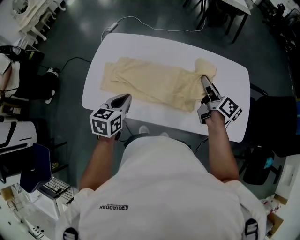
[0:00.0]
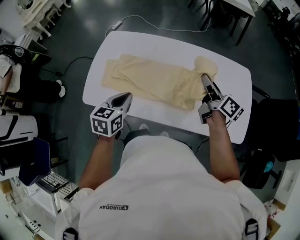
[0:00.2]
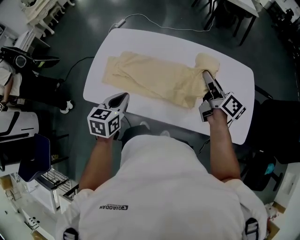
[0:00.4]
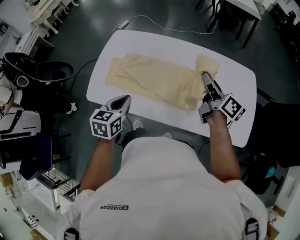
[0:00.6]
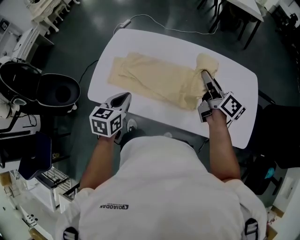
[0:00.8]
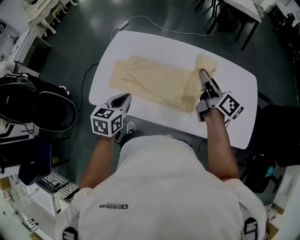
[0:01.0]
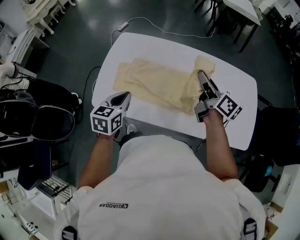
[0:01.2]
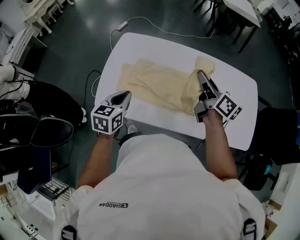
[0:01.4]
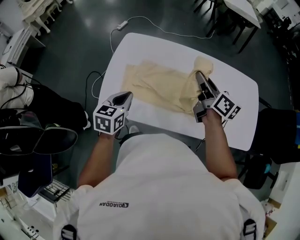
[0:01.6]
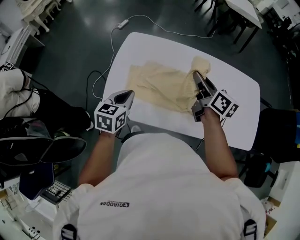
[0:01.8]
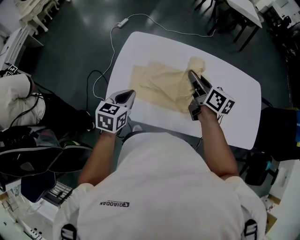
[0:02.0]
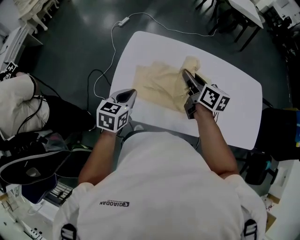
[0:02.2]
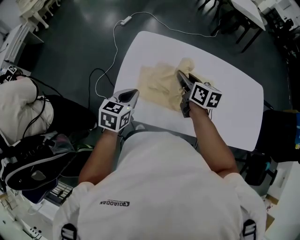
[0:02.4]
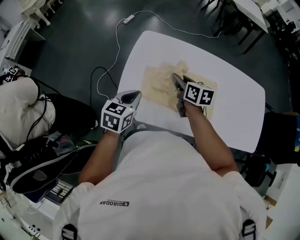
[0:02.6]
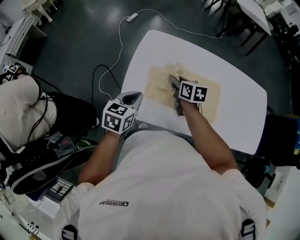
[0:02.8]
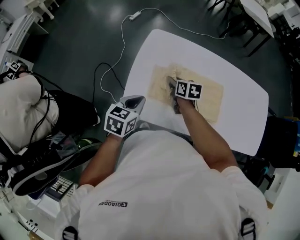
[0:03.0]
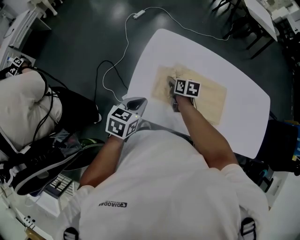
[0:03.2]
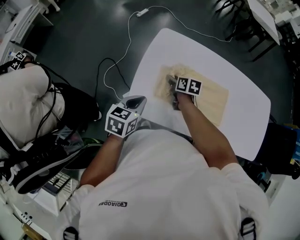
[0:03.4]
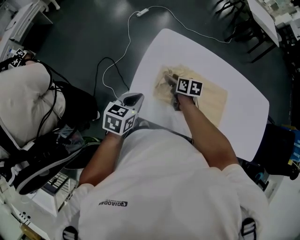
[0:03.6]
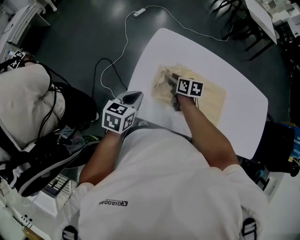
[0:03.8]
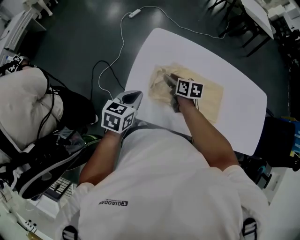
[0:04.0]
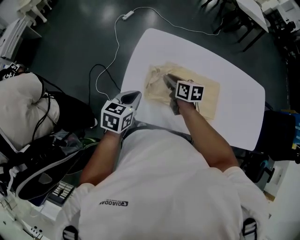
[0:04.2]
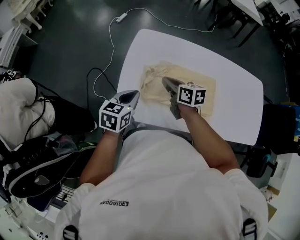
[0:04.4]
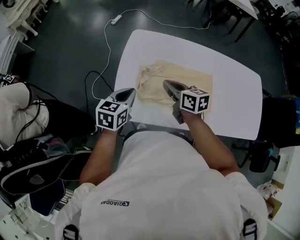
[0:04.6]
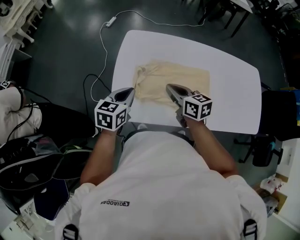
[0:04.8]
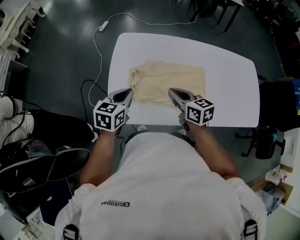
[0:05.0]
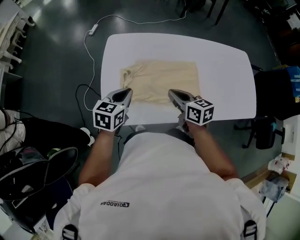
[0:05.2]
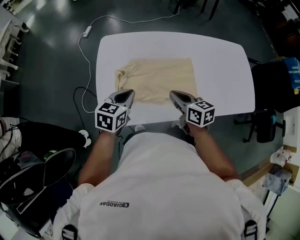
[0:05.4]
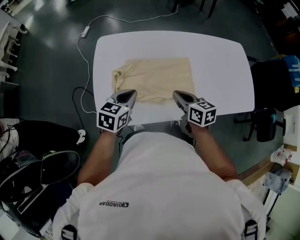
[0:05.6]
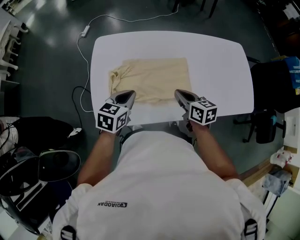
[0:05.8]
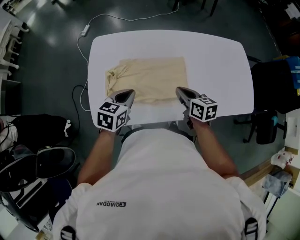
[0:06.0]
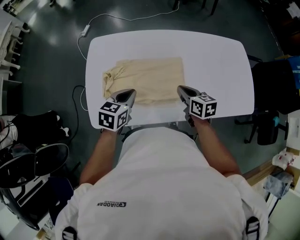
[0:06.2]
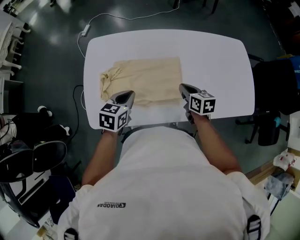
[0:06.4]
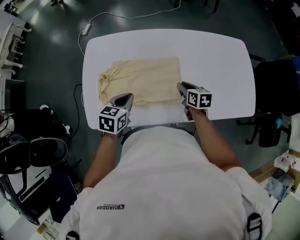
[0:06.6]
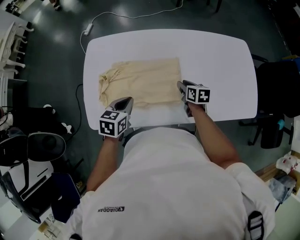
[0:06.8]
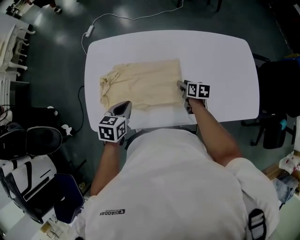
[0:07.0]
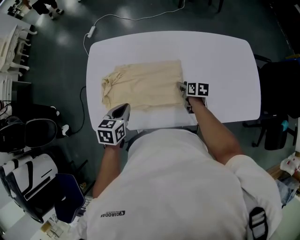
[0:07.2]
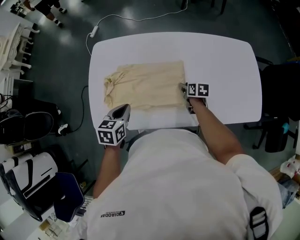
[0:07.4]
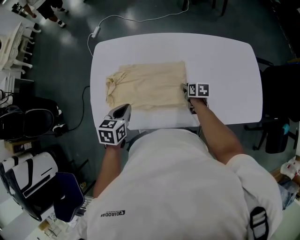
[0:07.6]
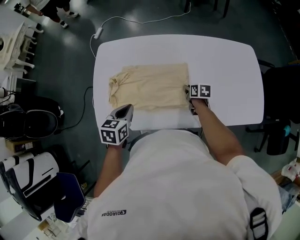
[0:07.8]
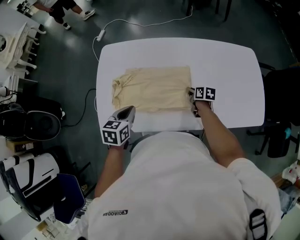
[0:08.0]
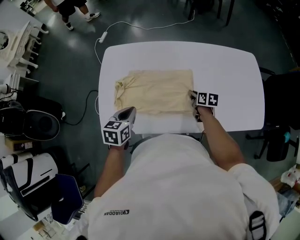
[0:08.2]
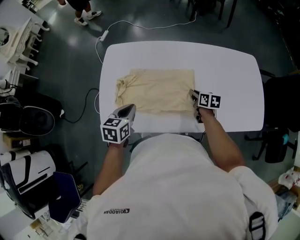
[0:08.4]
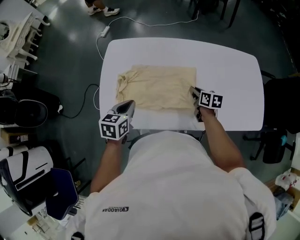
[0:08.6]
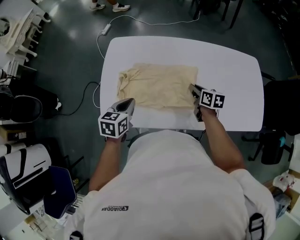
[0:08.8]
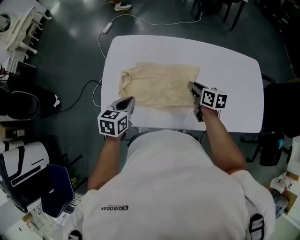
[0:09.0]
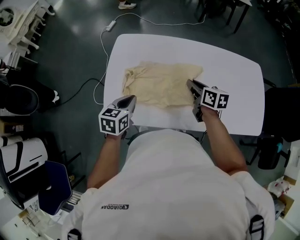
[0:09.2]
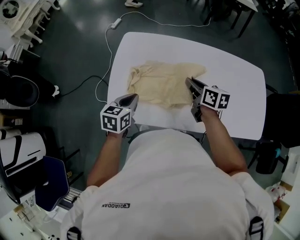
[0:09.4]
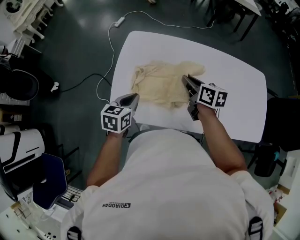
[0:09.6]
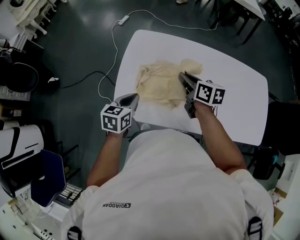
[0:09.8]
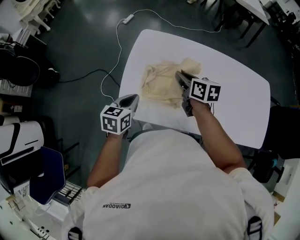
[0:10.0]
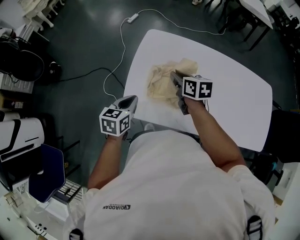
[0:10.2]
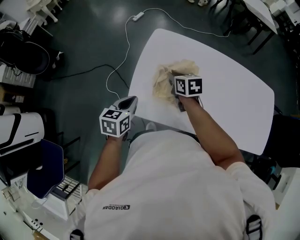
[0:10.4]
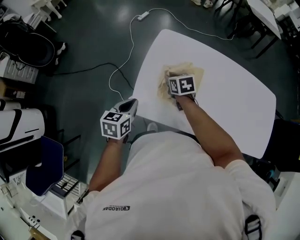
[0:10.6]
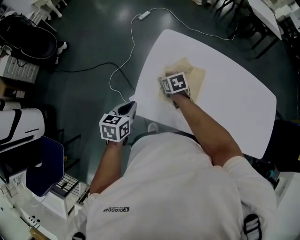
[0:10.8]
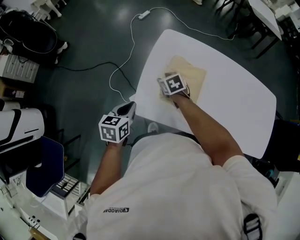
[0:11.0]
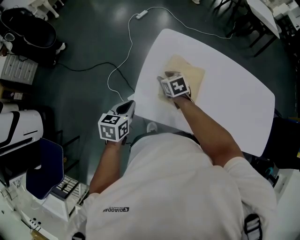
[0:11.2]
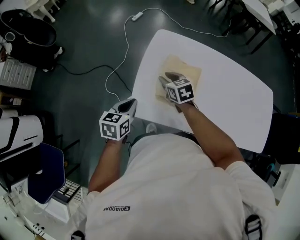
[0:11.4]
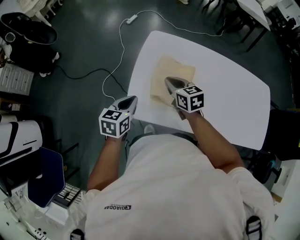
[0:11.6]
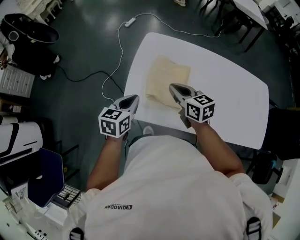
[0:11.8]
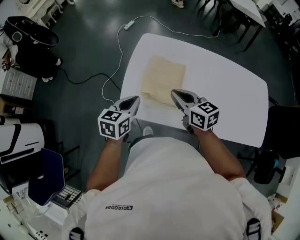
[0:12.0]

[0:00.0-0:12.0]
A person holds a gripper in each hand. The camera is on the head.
0:00.0 to 0:01.6: The grippers both shift to the left by some 20 cm.
0:01.6 to 0:03.0: The left gripper travels to the left and downward by about 10 cm. Meanwhile the right gripper travels to the left and downward by roughly 35 cm, and angles its fingers downward, by about 30 degrees.
0:03.0 to 0:04.4: The right gripper heads upward and backward, covering about 10 cm, and opens, then closes once more.
0:04.4 to 0:06.0: The right gripper is displaced to the right by roughly 25 cm. Meanwhile the left gripper moves to the right, roughly 15 cm.
0:06.0 to 0:07.6: The right gripper moves downward, to the right and forward, approximately 20 cm, turns by about 20 degrees, and opens its fingers.
0:07.6 to 0:09.0: The left gripper moves to the left, approximately 5 cm. Meanwhile the right gripper moves upward and to the left, roughly 15 cm, and closes.
0:09.0 to 0:10.4: The left gripper goes roughly 15 cm to the left; the right gripper is displaced to the left by approximately 30 cm, and turns by some 30 degrees.
0:10.4 to 0:12.0: The left gripper goes some 5 cm to the right. Meanwhile the right gripper shifts about 15 cm backward and upward, rotates some 20 degrees, and opens, then closes once more.

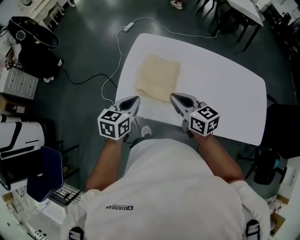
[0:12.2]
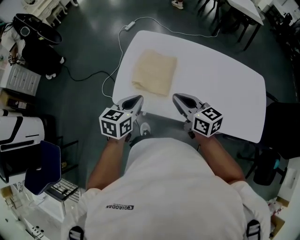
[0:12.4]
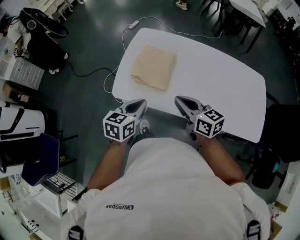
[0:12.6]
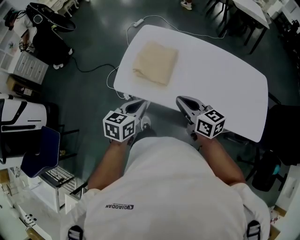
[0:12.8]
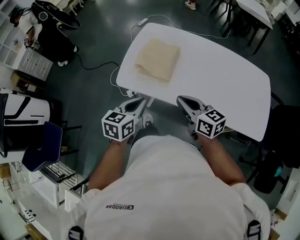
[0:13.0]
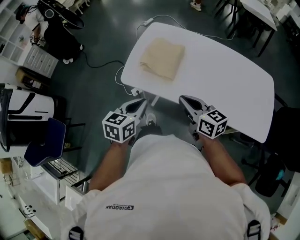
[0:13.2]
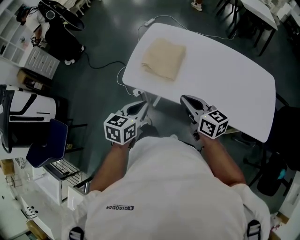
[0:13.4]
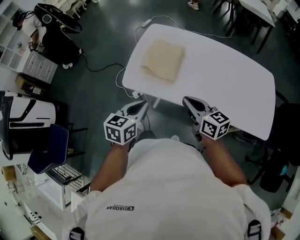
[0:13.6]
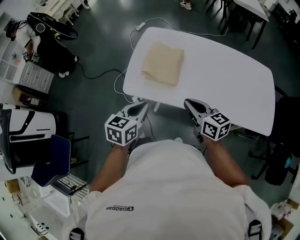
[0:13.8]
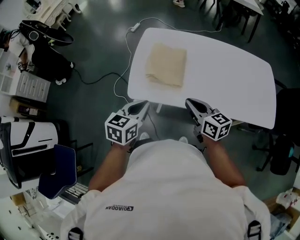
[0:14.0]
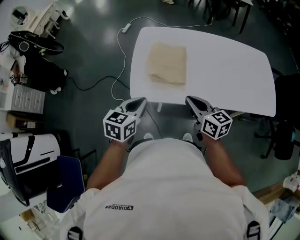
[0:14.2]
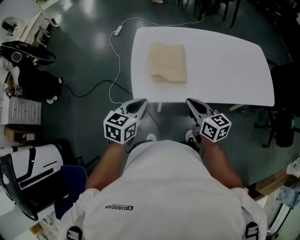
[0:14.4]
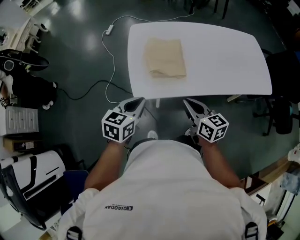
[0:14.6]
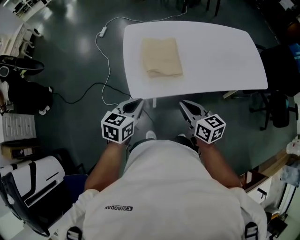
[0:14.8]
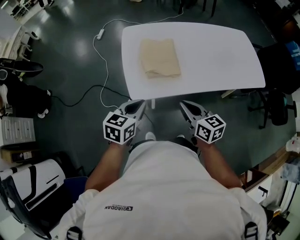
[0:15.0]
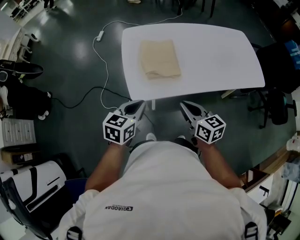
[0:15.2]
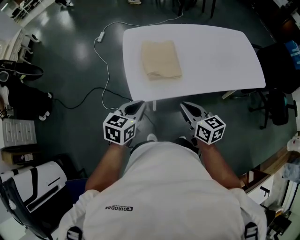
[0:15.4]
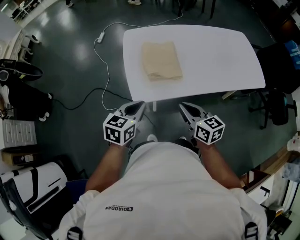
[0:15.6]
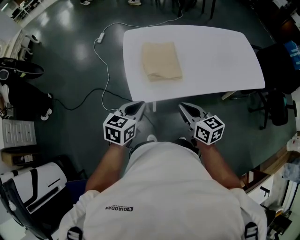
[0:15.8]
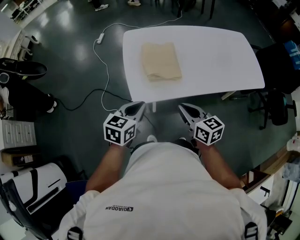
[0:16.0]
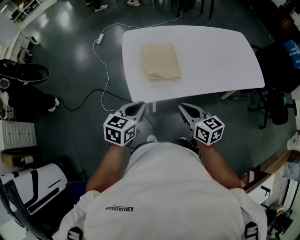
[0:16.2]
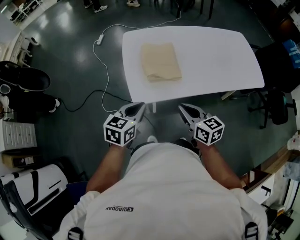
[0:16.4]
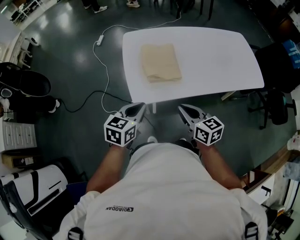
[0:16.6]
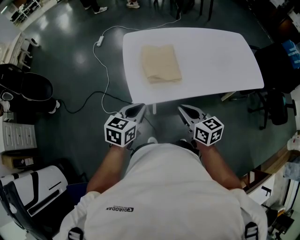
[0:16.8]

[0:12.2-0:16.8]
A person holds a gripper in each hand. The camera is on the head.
0:12.2 to 0:13.8: The two grippers go roughly 15 cm backward.
0:13.8 to 0:15.2: The left gripper shifts by about 15 cm, and swivels approximately 30 degrees. Meanwhile the right gripper ends up roughly 15 cm from where it was, and changes its angle by about 30 degrees.
0:15.2 to 0:16.8: The grippers move only a little.

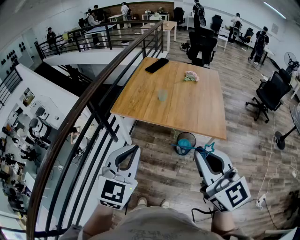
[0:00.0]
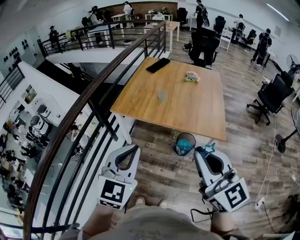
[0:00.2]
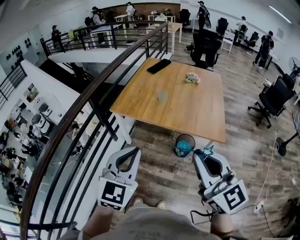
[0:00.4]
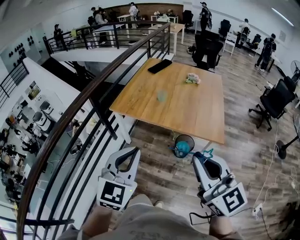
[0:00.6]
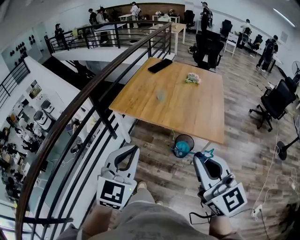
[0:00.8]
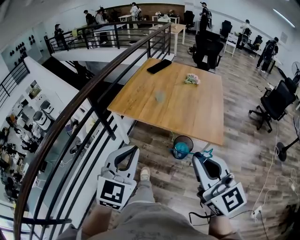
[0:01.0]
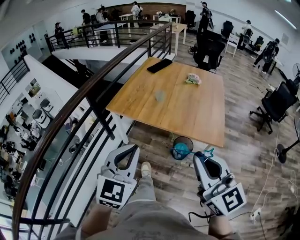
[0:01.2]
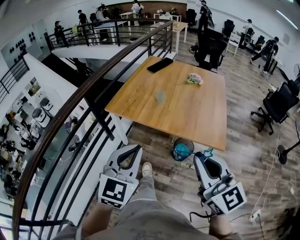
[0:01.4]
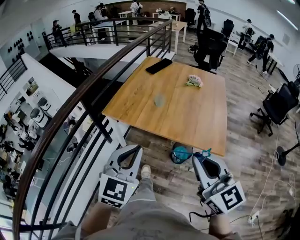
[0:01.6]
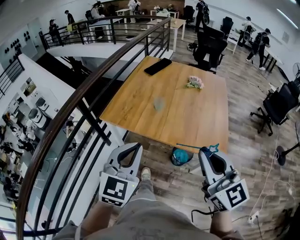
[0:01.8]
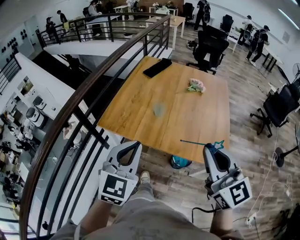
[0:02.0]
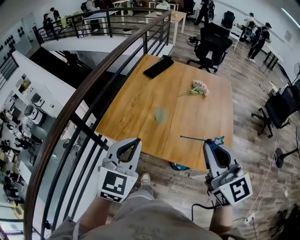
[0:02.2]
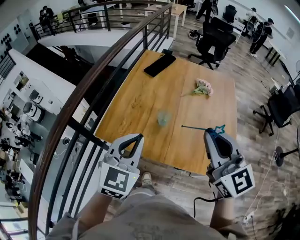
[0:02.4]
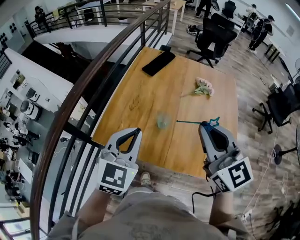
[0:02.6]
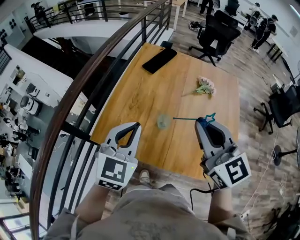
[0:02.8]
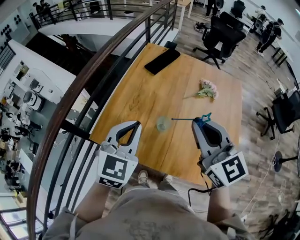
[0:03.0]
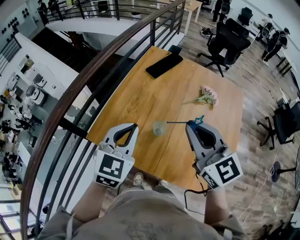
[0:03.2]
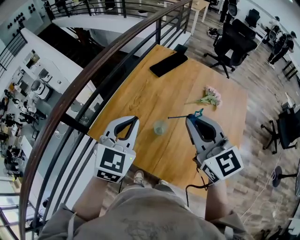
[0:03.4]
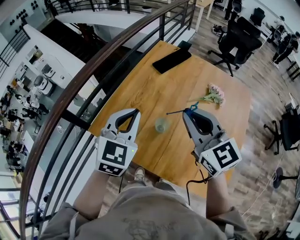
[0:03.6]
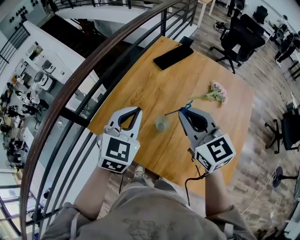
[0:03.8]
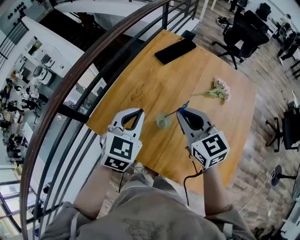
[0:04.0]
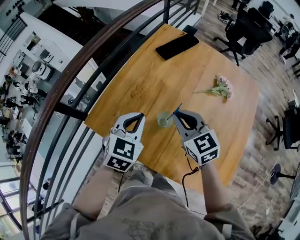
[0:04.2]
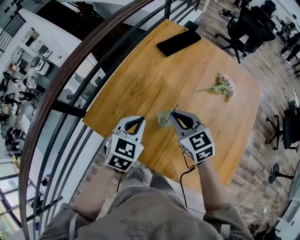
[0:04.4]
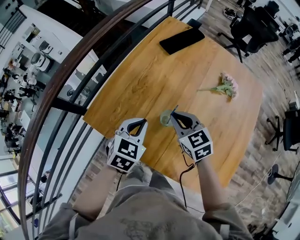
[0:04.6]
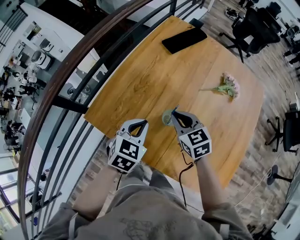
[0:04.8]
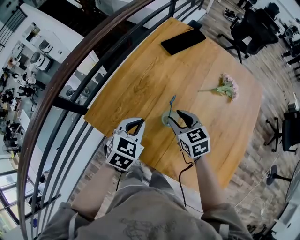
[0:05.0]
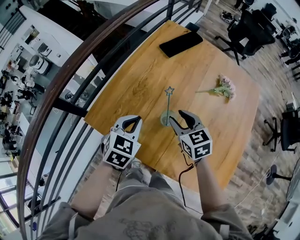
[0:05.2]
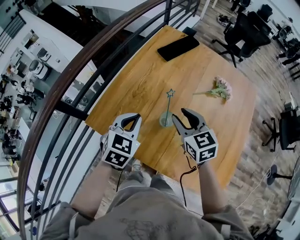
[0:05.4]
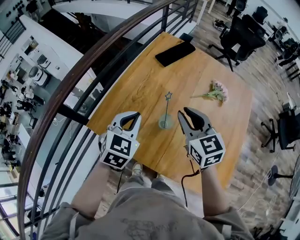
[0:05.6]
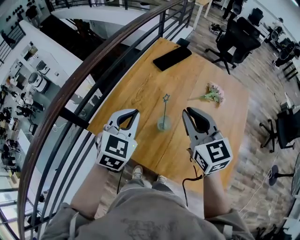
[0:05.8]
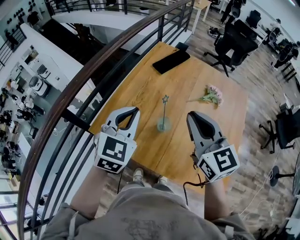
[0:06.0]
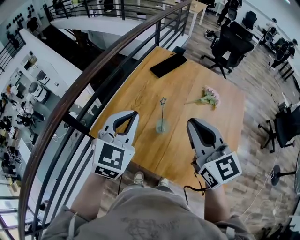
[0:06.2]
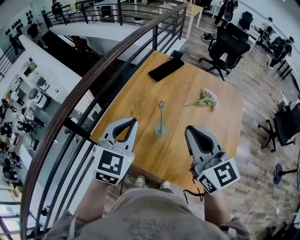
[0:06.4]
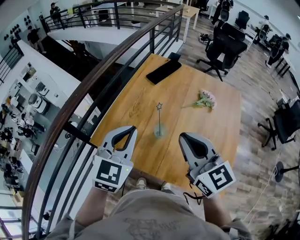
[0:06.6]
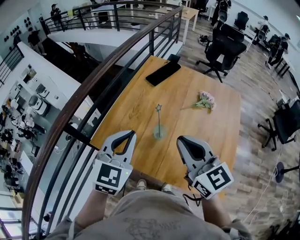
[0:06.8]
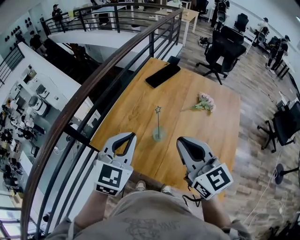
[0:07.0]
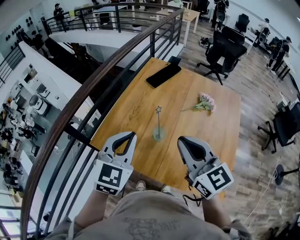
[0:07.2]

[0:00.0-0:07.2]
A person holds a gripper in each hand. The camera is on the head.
0:00.0 to 0:01.4: The grippers both shift to the right by roughly 10 cm.
0:01.4 to 0:02.8: The pair of grippers is taken forward, about 40 cm.
0:02.8 to 0:04.4: The left gripper goes approximately 15 cm downward, and rotates about 20 degrees; the right gripper goes about 25 cm downward and forward, and swivels about 30 degrees.
0:04.4 to 0:05.8: The grippers both shift upward by some 15 cm. The right gripper turns by about 20 degrees, and opens and closes again.
0:05.8 to 0:07.2: The right gripper is displaced backward by approximately 10 cm; the left gripper travels backward and upward by some 10 cm.
